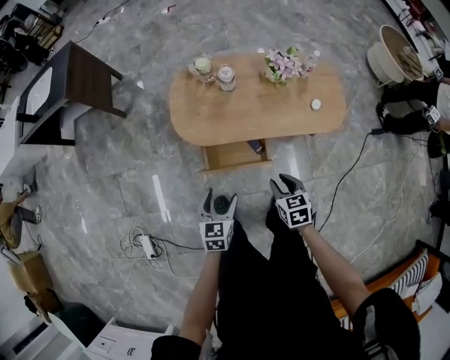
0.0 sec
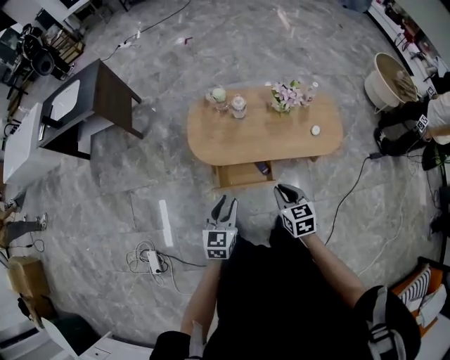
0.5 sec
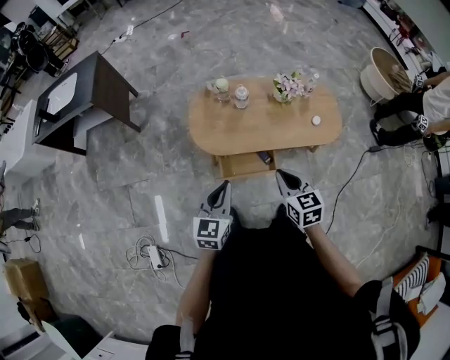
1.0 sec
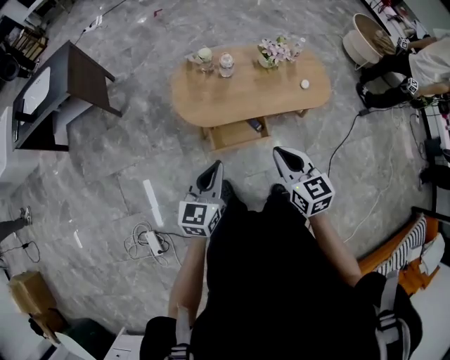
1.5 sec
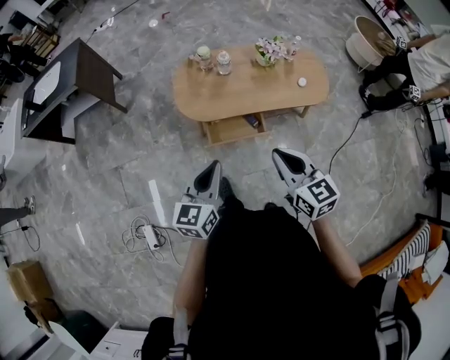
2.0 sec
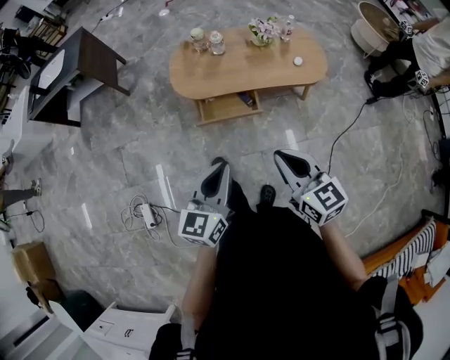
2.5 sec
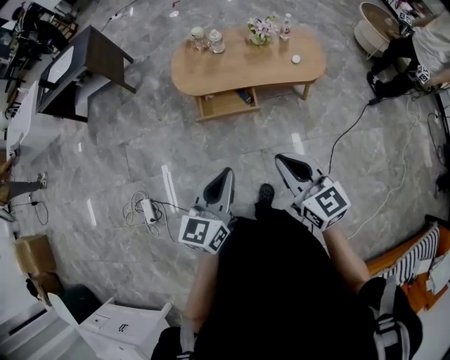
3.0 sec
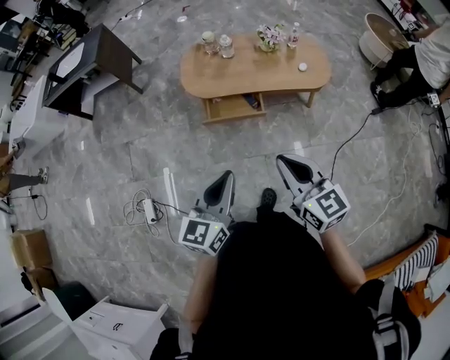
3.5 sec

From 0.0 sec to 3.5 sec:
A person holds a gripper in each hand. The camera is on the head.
From 0.0 sec to 2.0 sec: The two grippers go approximately 25 cm upward and backward. The left gripper changes its angle by about 30 degrees, and closes, while the right gripper changes its angle by approximately 30 degrees, and closes.
From 2.0 sec to 3.5 sec: Both grippers move backward and to the right, some 25 cm.

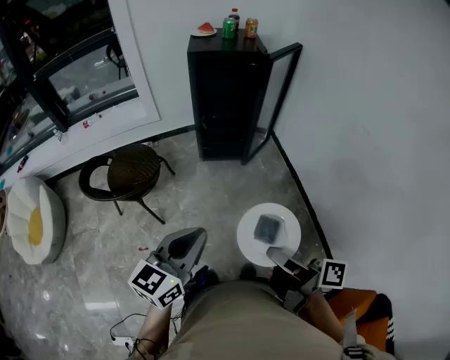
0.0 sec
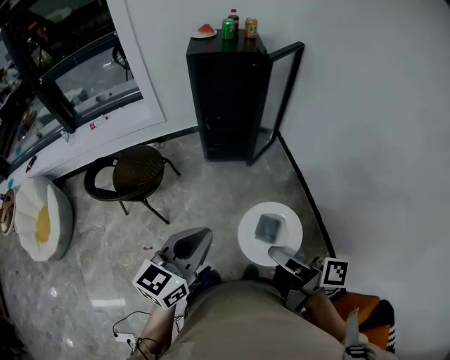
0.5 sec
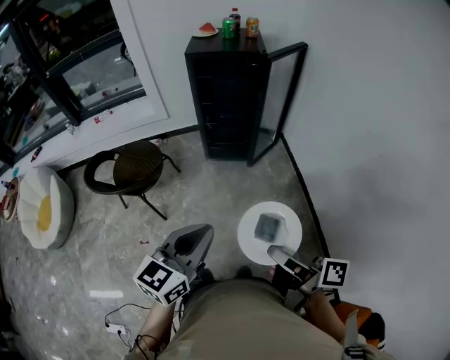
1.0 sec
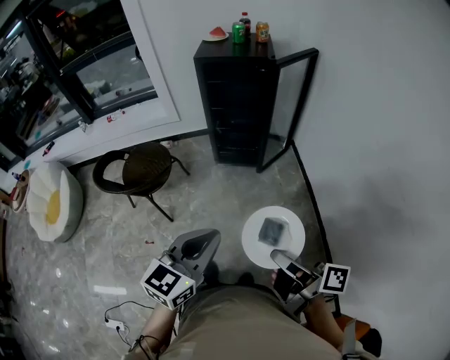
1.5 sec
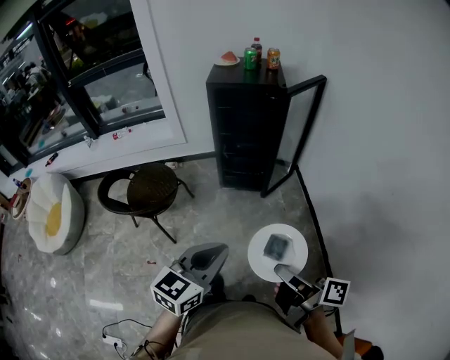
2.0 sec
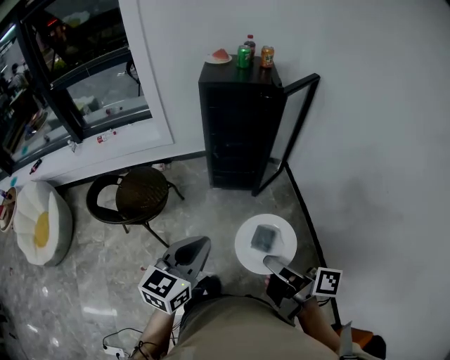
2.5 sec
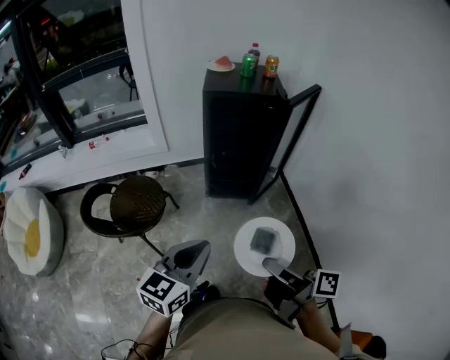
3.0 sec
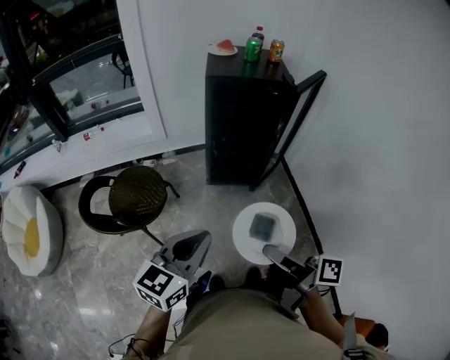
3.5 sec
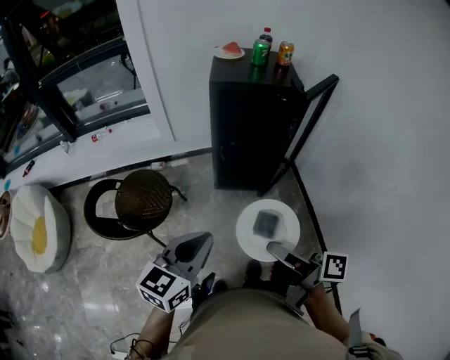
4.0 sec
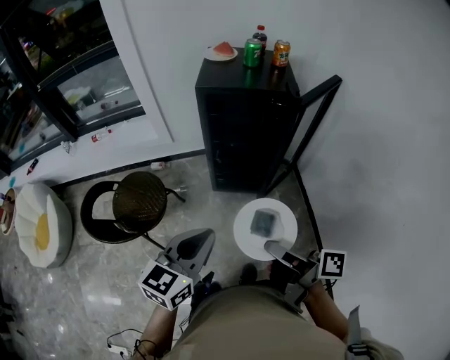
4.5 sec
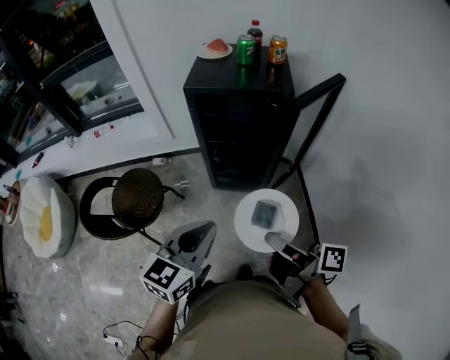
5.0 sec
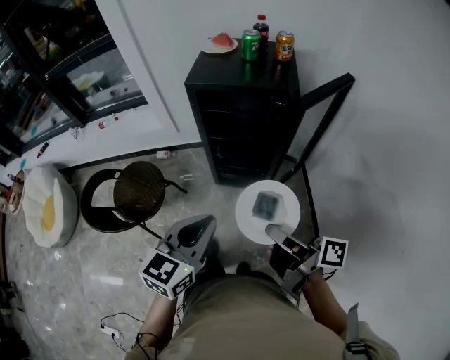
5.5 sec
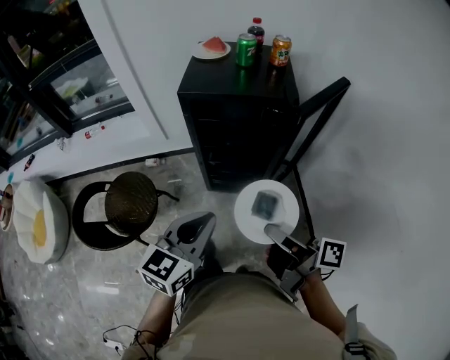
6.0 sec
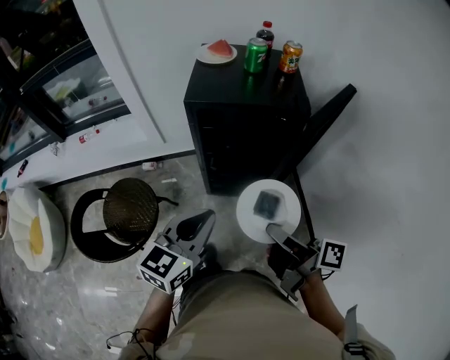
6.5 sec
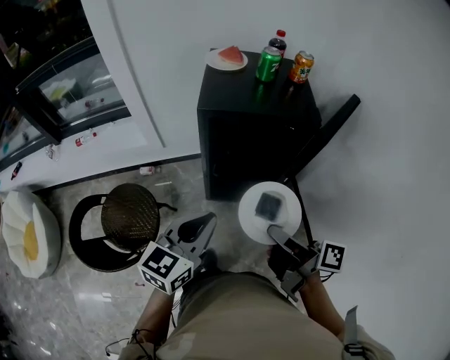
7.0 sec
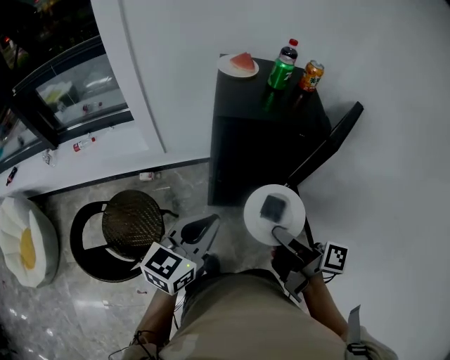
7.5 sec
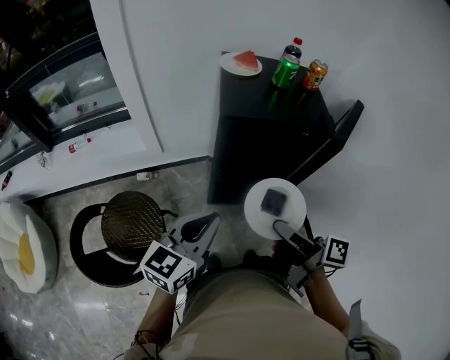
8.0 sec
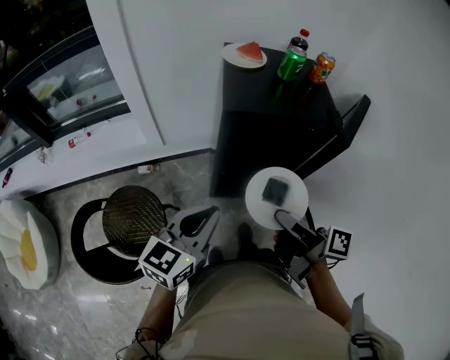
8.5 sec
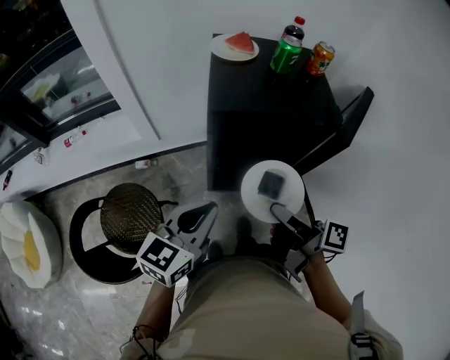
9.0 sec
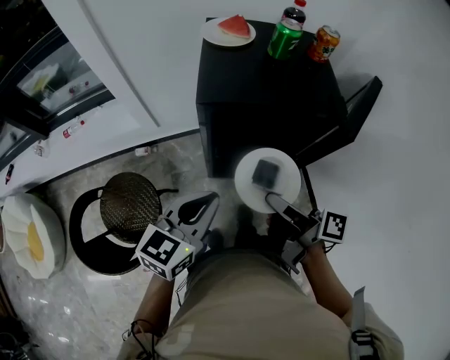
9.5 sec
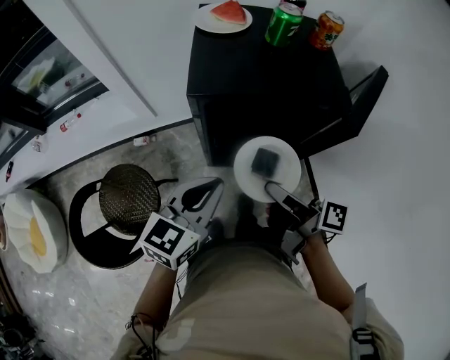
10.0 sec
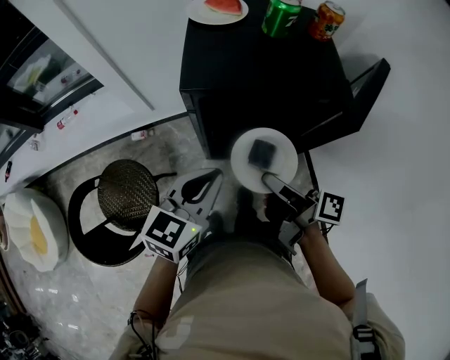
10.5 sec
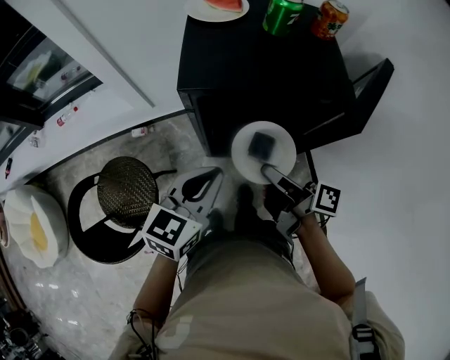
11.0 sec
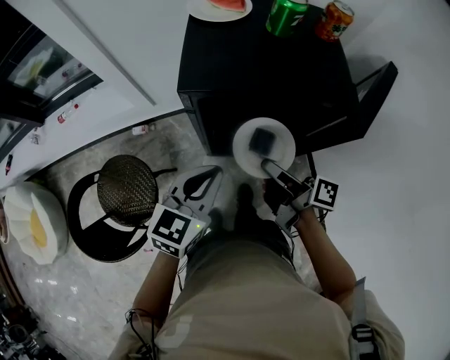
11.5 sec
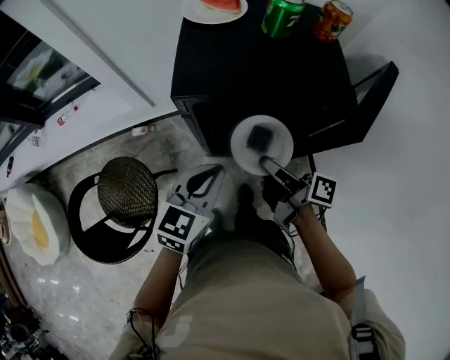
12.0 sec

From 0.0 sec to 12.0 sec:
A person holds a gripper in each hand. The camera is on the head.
From 0.0 sec to 2.0 sec: The left gripper ends up some 10 cm from where it was.
From 2.0 sec to 4.0 sec: The left gripper shifts by approximately 20 cm.
From 4.0 sec to 6.0 sec: The left gripper shifts by about 20 cm.
From 6.0 sec to 8.0 sec: The left gripper moves roughly 15 cm.
From 8.0 sec to 10.0 sec: The left gripper changes place by approximately 10 cm.
From 10.0 sec to 12.0 sec: The left gripper moves downward, about 5 cm.

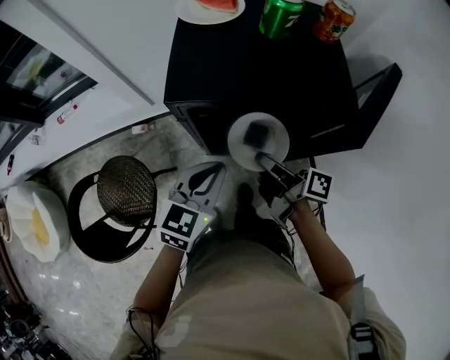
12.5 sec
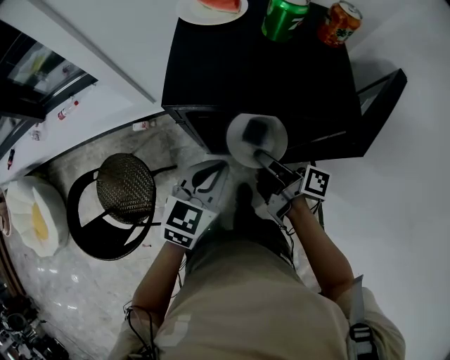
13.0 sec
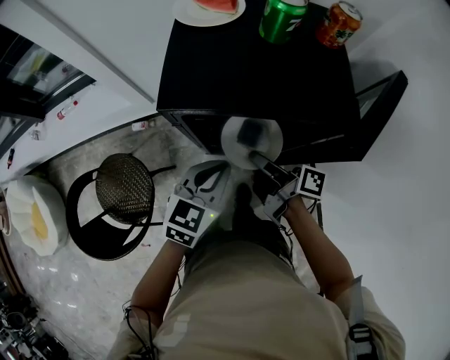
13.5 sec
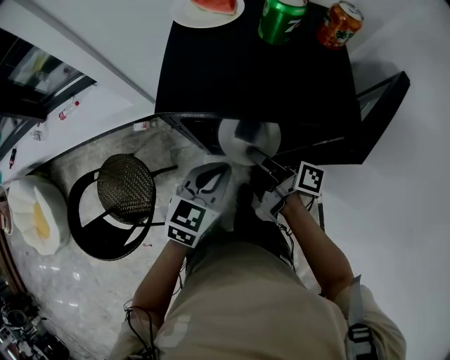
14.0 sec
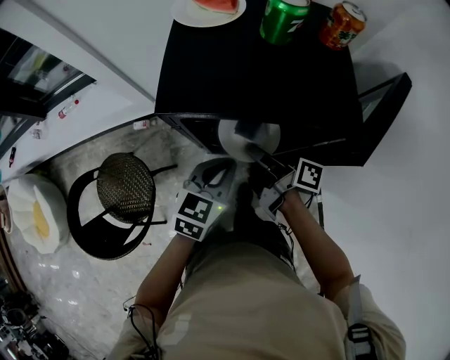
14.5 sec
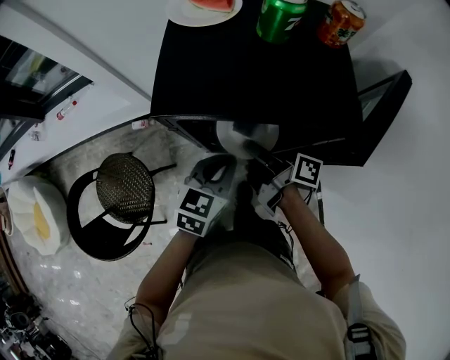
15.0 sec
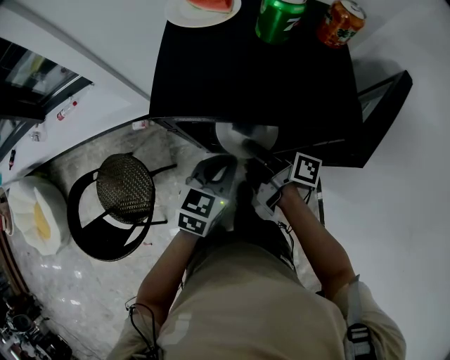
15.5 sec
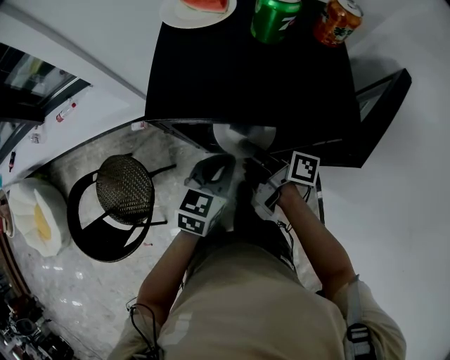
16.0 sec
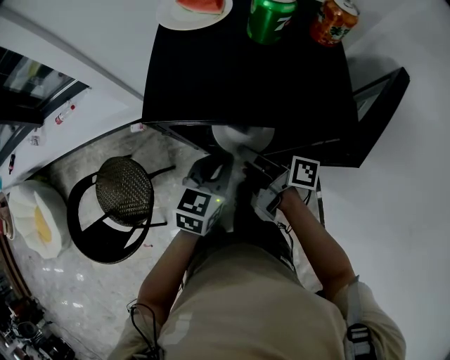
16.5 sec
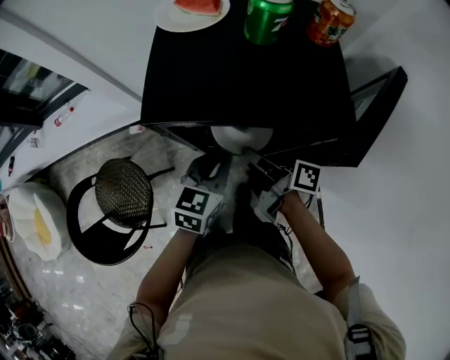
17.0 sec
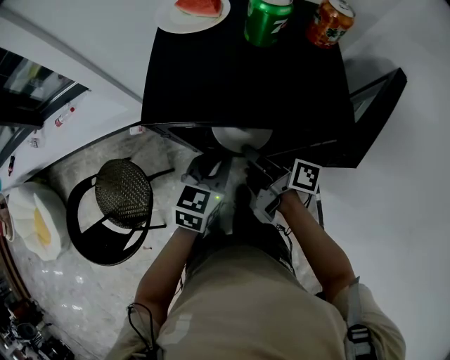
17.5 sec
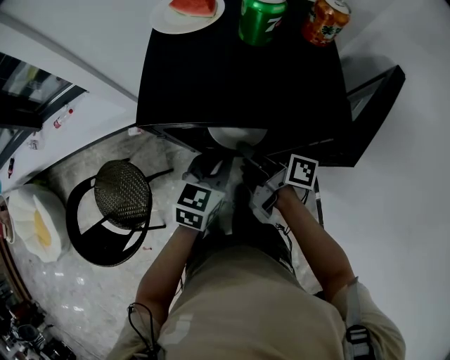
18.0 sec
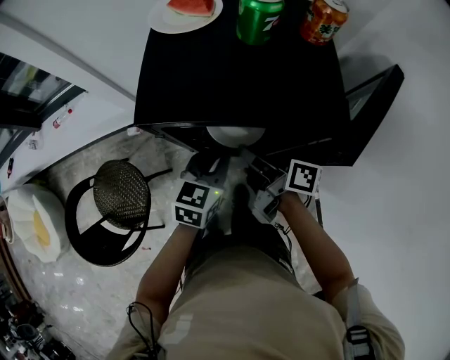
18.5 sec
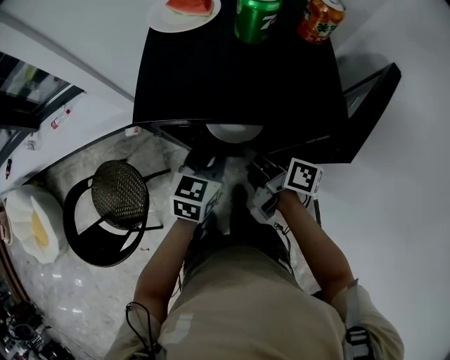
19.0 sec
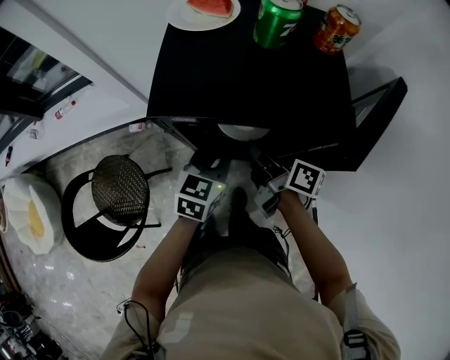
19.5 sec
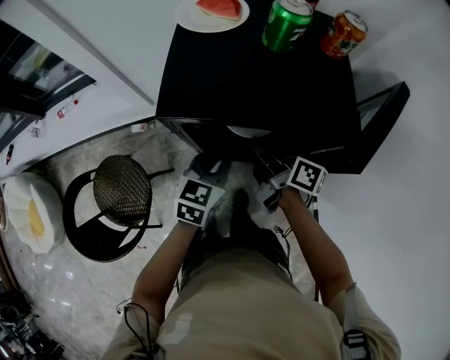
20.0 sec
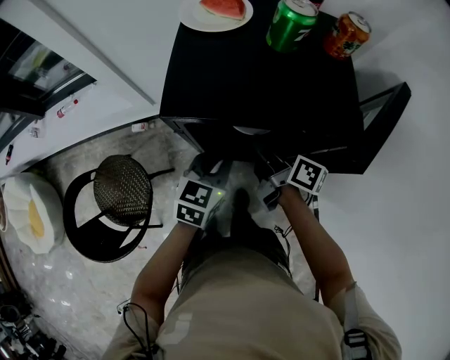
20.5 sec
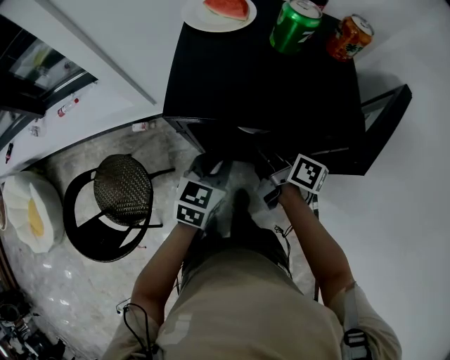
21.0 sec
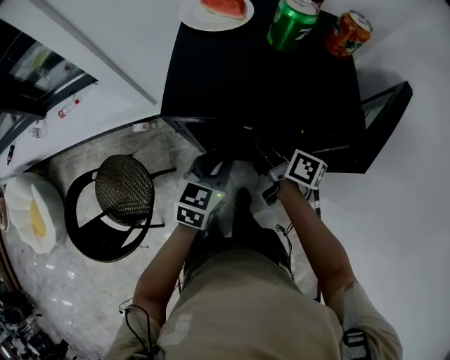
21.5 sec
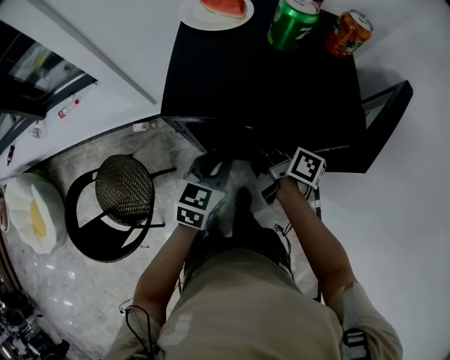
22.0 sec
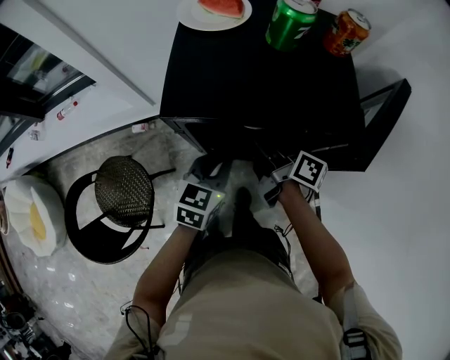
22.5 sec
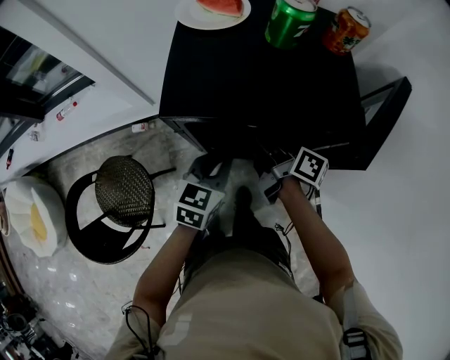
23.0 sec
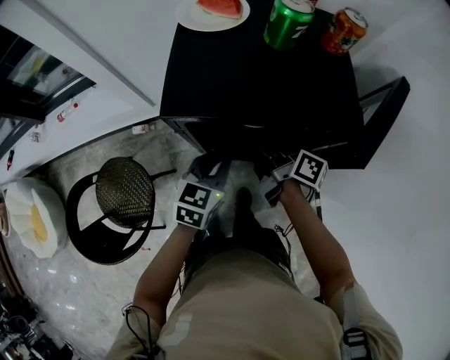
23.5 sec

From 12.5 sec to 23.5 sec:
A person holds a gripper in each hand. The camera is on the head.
From 12.5 sec to 14.5 sec: The left gripper moves approximately 5 cm.

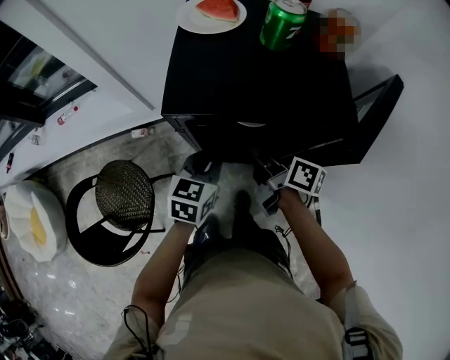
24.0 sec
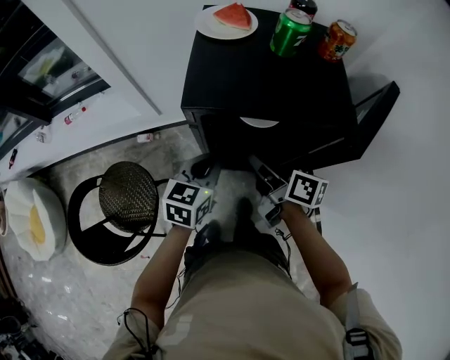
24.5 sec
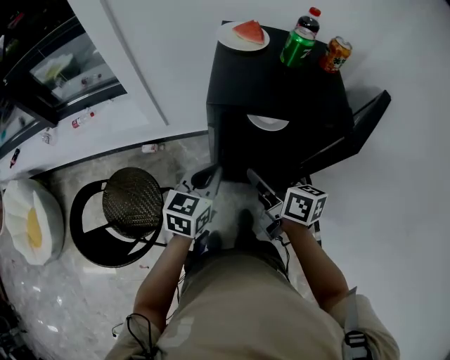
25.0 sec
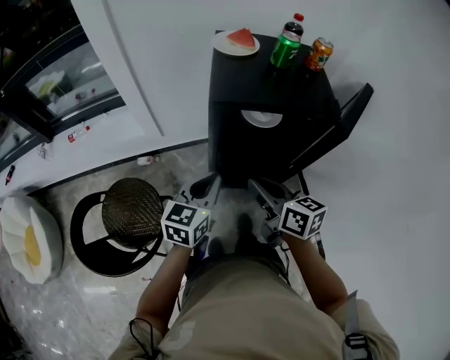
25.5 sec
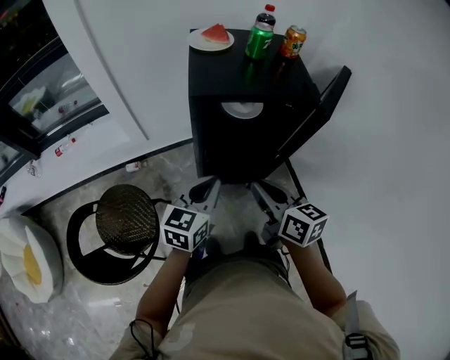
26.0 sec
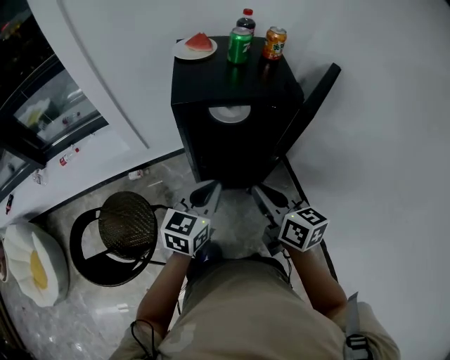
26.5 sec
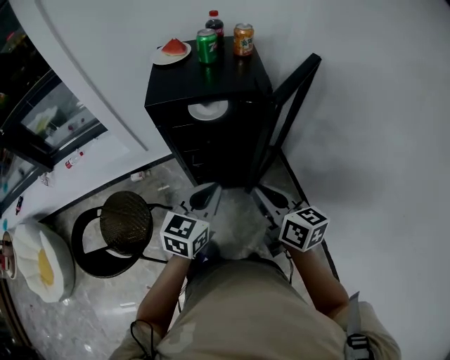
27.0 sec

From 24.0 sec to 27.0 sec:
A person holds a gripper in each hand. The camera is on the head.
From 24.0 sec to 25.5 sec: The left gripper moves some 15 cm.
From 25.5 sec to 27.0 sec: The left gripper shifts by about 20 cm.
